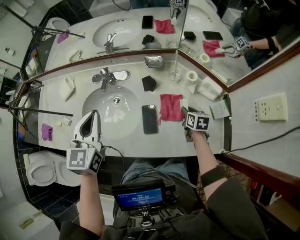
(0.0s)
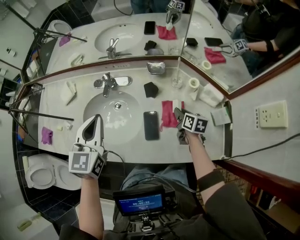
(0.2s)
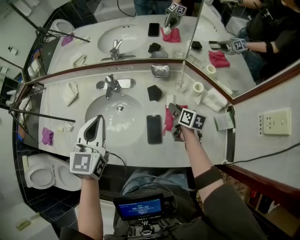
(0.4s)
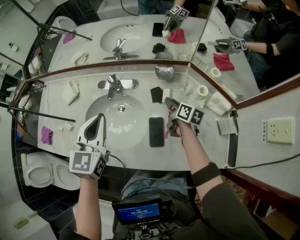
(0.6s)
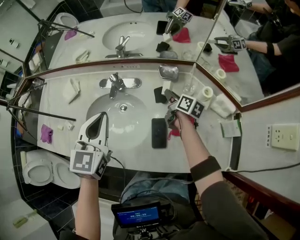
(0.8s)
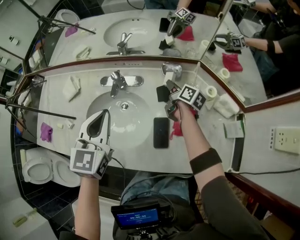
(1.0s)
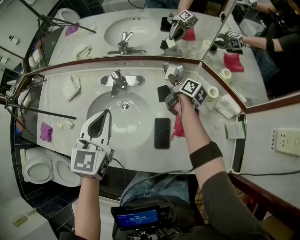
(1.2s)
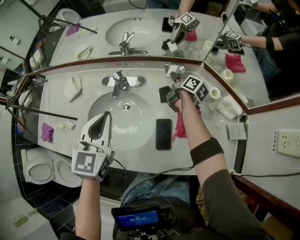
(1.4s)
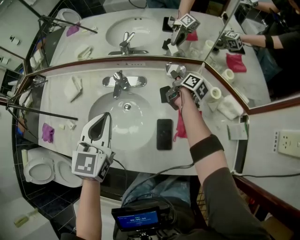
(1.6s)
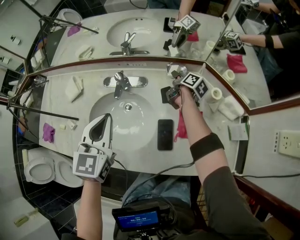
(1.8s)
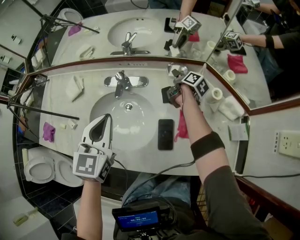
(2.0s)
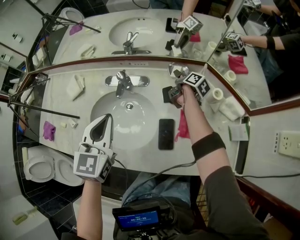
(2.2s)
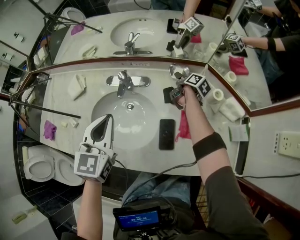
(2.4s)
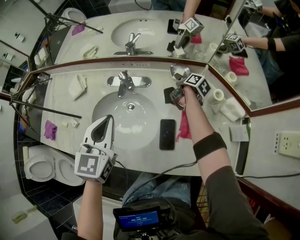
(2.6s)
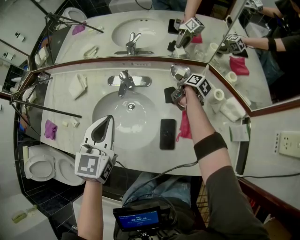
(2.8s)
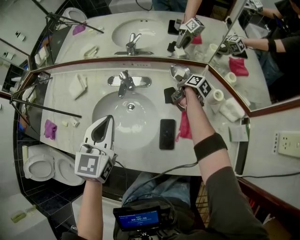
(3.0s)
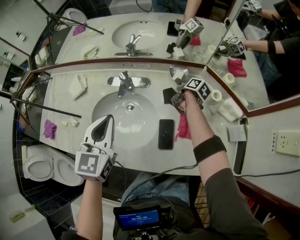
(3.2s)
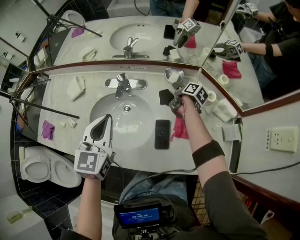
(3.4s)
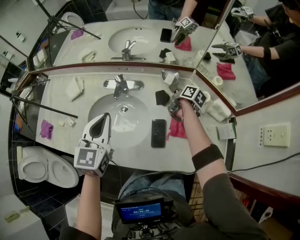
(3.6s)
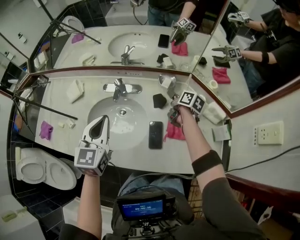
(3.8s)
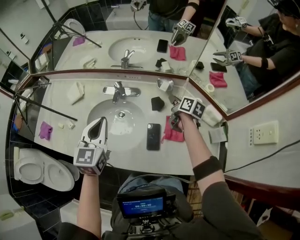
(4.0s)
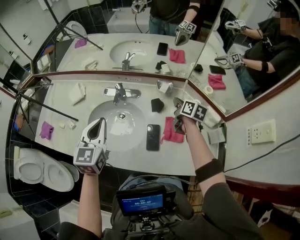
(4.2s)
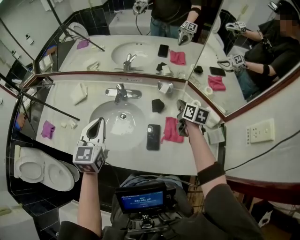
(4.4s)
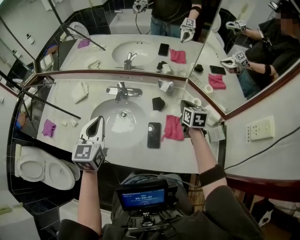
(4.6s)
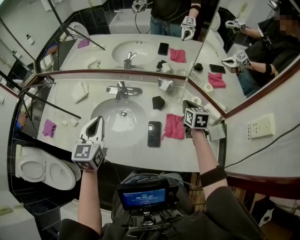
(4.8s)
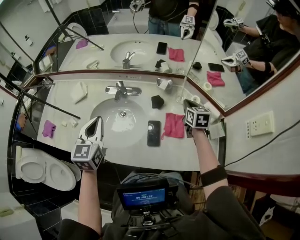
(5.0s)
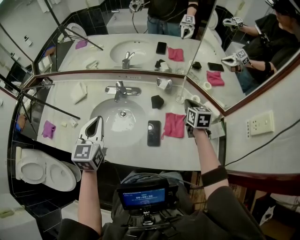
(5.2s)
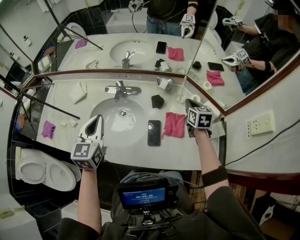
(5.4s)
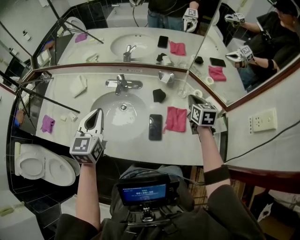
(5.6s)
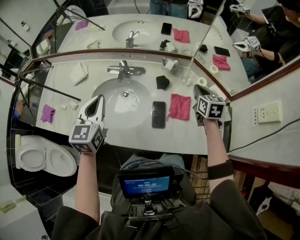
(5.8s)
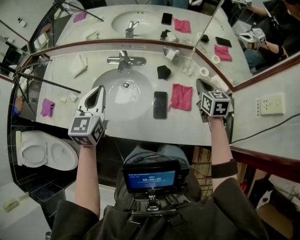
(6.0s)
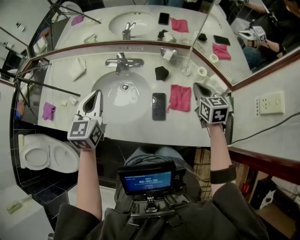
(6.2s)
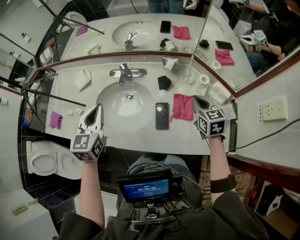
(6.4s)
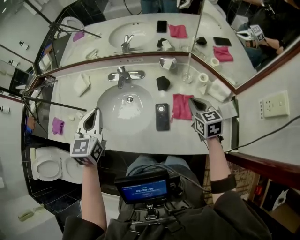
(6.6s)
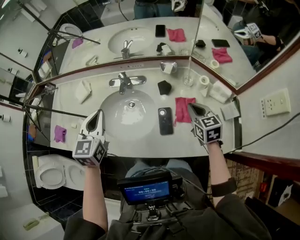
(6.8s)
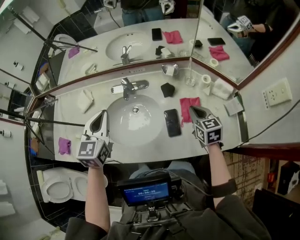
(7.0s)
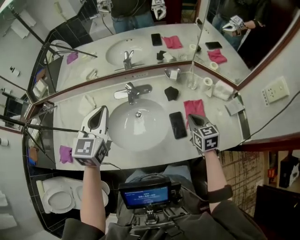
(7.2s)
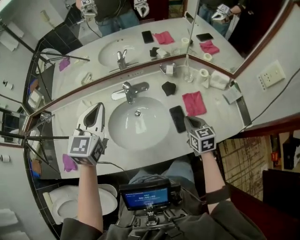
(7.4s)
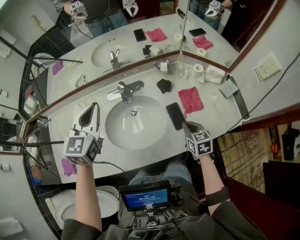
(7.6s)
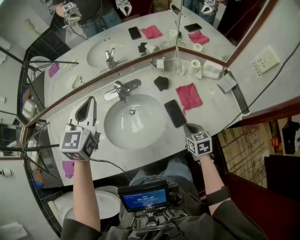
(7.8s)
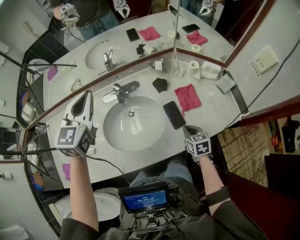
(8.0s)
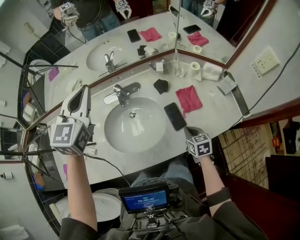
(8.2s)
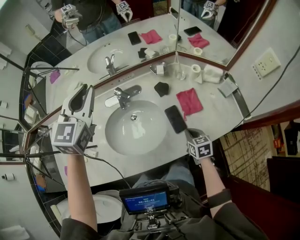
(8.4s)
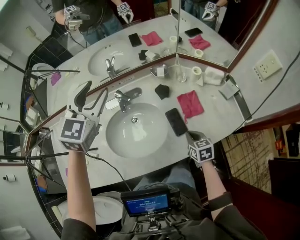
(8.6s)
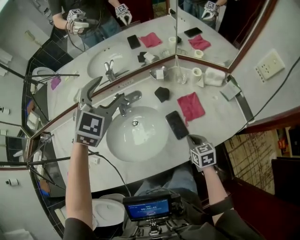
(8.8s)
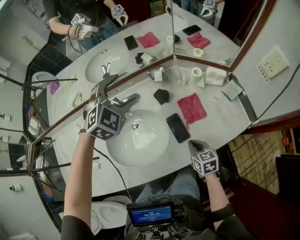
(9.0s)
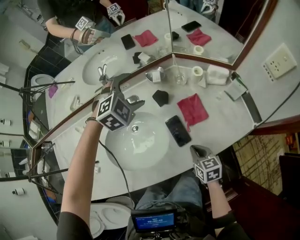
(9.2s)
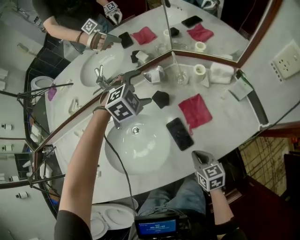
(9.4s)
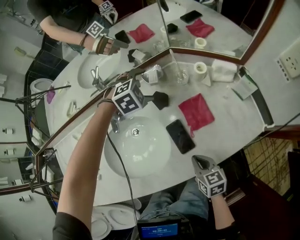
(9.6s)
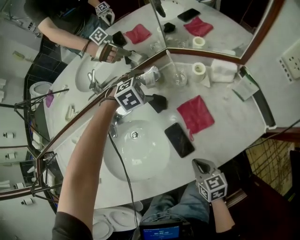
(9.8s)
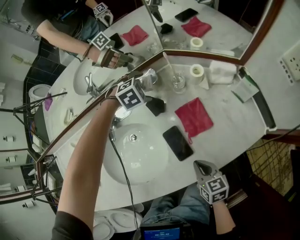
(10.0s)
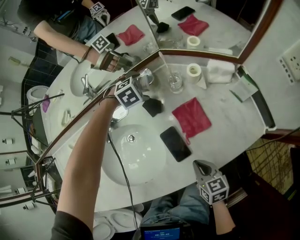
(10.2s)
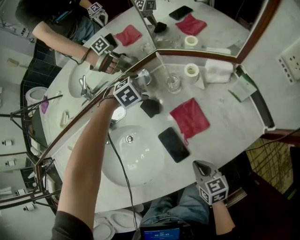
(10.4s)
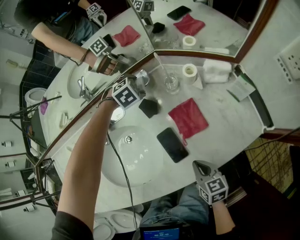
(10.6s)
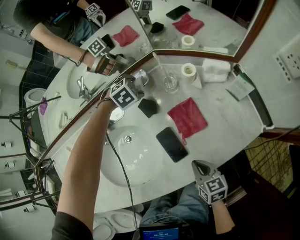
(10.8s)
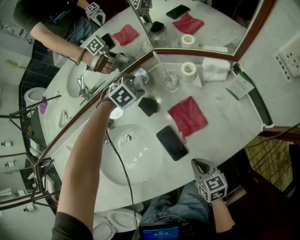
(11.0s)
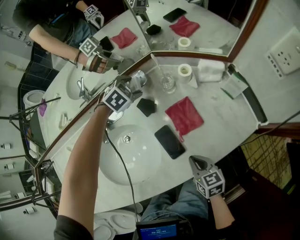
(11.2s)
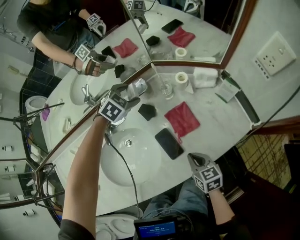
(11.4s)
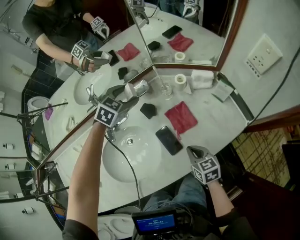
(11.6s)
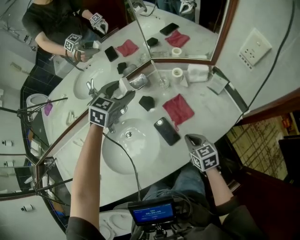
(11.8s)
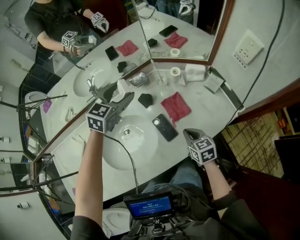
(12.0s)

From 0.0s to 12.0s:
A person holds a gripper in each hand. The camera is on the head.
From 0.0s to 1.6s: The left gripper moves forward, approximately 5 cm, while the right gripper is displaced forward and to the left by some 30 cm, and turns by some 40 degrees.
From 1.6s to 3.0s: The grippers move only a little.
From 3.0s to 4.4s: The left gripper heads backward, covering some 5 cm; the right gripper heads upward and backward, covering approximately 20 cm, changes its angle by roughly 40 degrees, and closes its fingers.
From 4.4s to 6.0s: The right gripper travels backward by about 10 cm, and rotates about 30 degrees.
From 6.0s to 7.6s: The left gripper heads forward, to the left and upward, covering roughly 15 cm, and swivels some 30 degrees. Meanwhile the right gripper moves to the left, backward and downward, approximately 25 cm.
From 7.6s to 9.0s: The left gripper travels to the right and forward by roughly 20 cm, rolls clockwise, seen from behind, by roughly 50 degrees, and opens. Meanwhile the right gripper moves downward, roughly 5 cm.
From 9.0s to 10.4s: The right gripper ends up approximately 5 cm from where it was. Meanwhile the left gripper travels downward by roughly 30 cm, and tilts its fingers about 40 degrees downward.
From 10.4s to 12.0s: The right gripper heads upward, covering some 10 cm, while the left gripper moves upward, approximately 30 cm, and angles its fingers upward, by roughly 40 degrees.

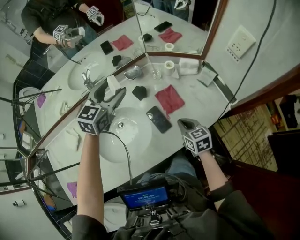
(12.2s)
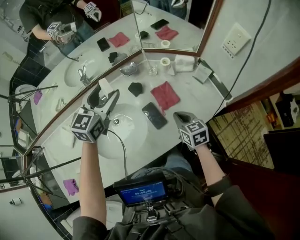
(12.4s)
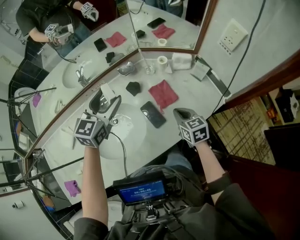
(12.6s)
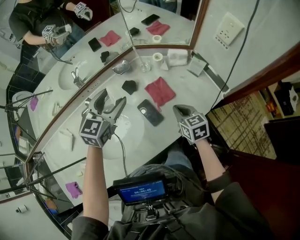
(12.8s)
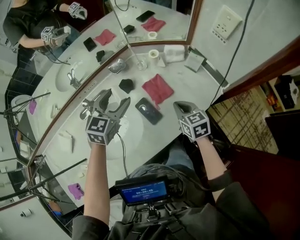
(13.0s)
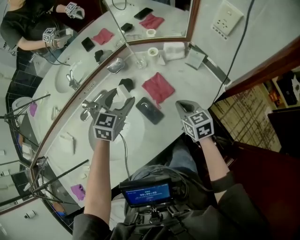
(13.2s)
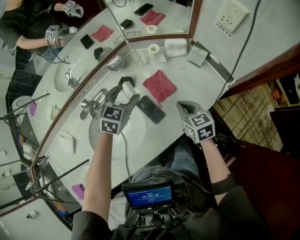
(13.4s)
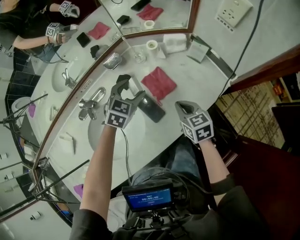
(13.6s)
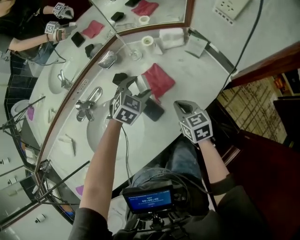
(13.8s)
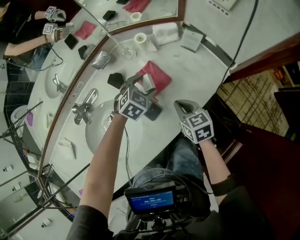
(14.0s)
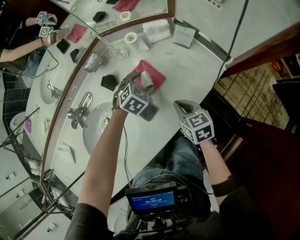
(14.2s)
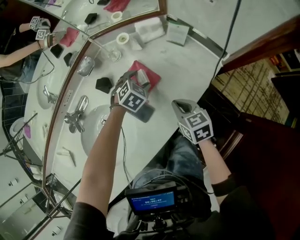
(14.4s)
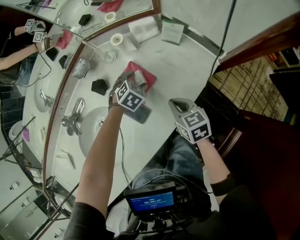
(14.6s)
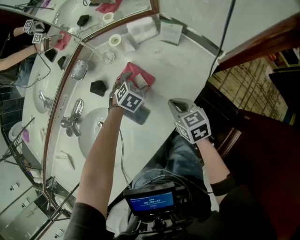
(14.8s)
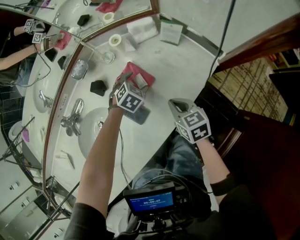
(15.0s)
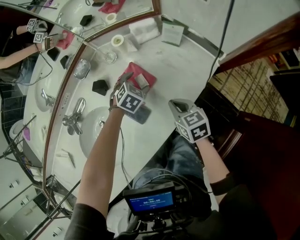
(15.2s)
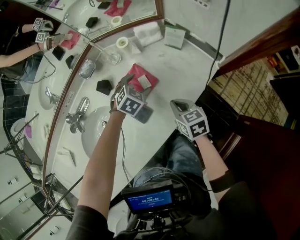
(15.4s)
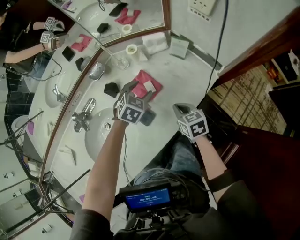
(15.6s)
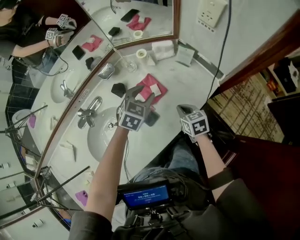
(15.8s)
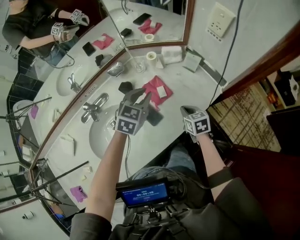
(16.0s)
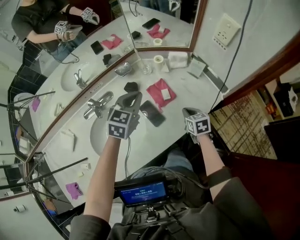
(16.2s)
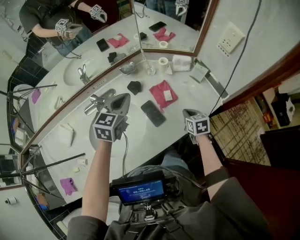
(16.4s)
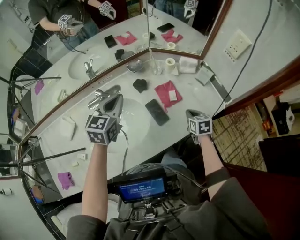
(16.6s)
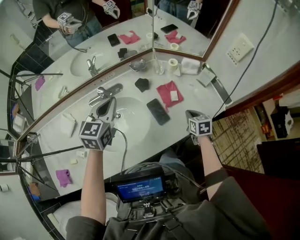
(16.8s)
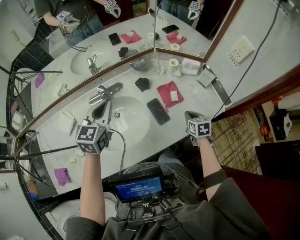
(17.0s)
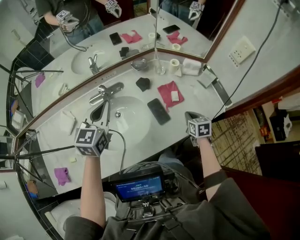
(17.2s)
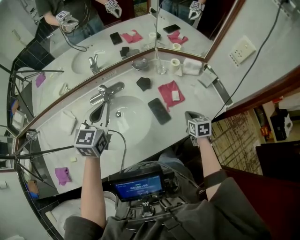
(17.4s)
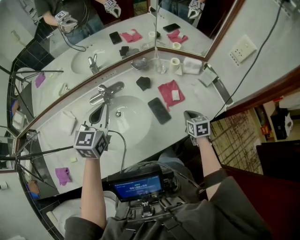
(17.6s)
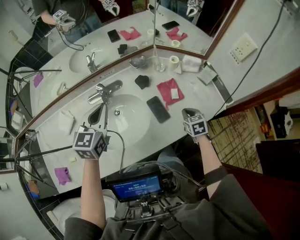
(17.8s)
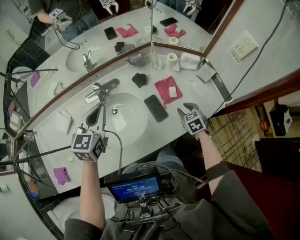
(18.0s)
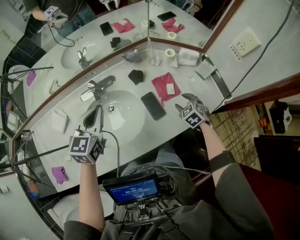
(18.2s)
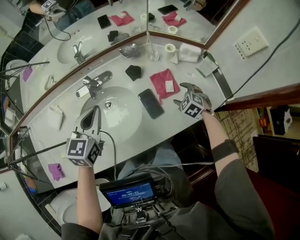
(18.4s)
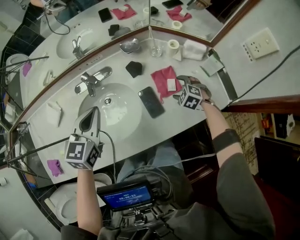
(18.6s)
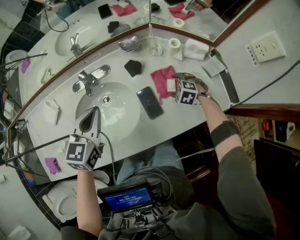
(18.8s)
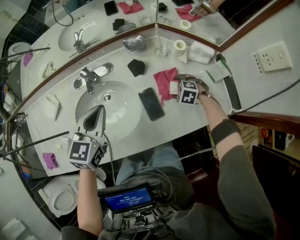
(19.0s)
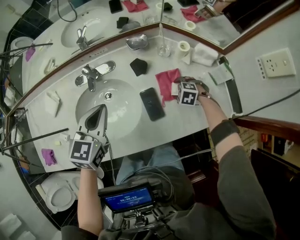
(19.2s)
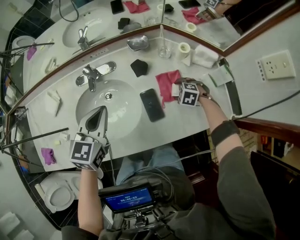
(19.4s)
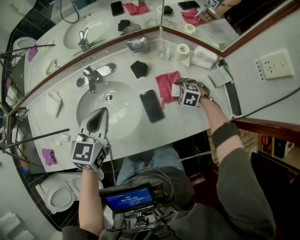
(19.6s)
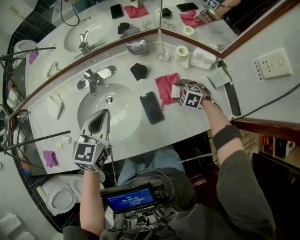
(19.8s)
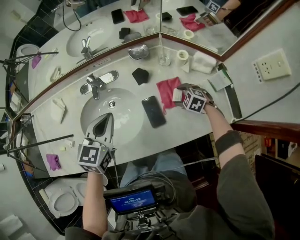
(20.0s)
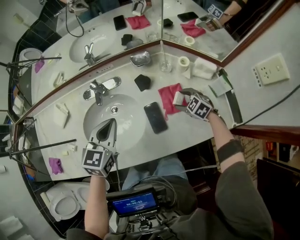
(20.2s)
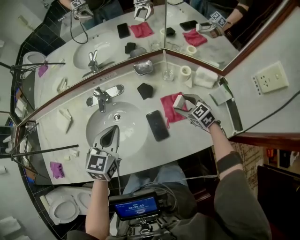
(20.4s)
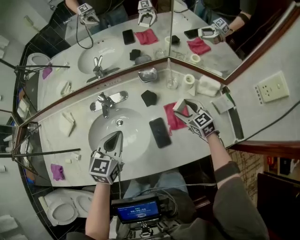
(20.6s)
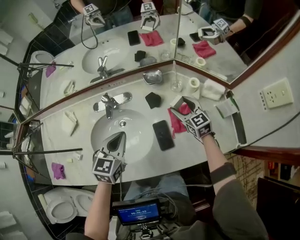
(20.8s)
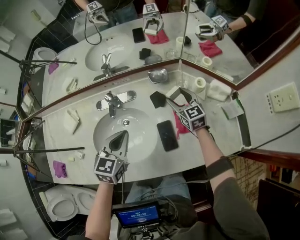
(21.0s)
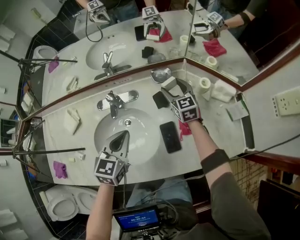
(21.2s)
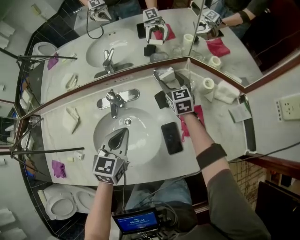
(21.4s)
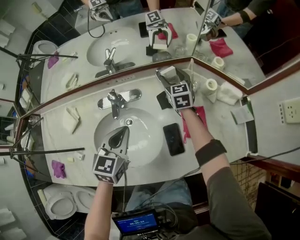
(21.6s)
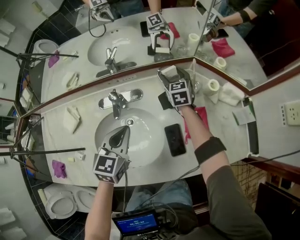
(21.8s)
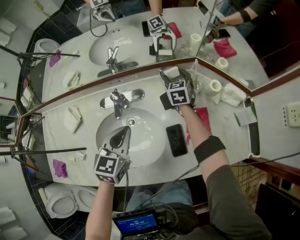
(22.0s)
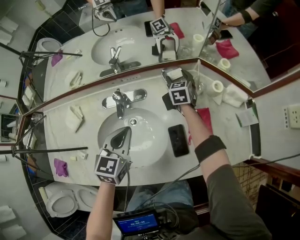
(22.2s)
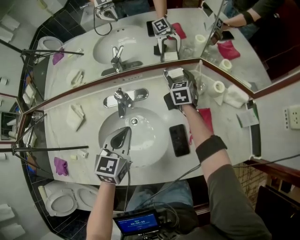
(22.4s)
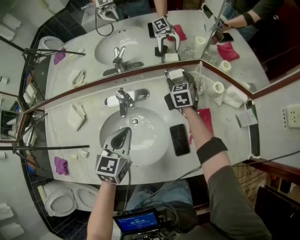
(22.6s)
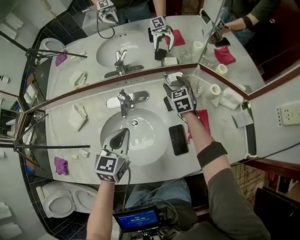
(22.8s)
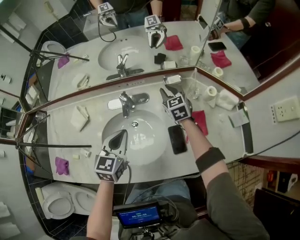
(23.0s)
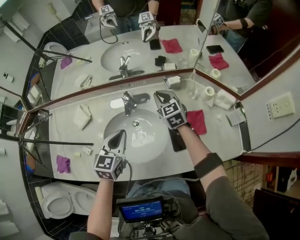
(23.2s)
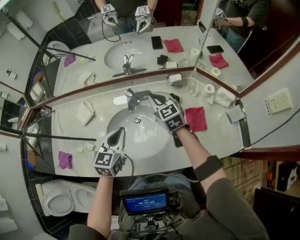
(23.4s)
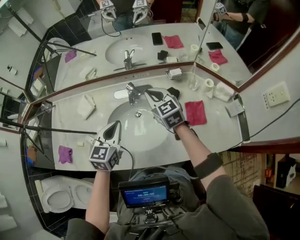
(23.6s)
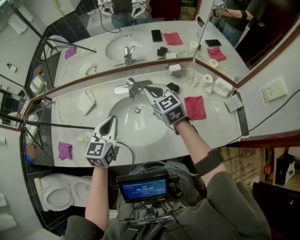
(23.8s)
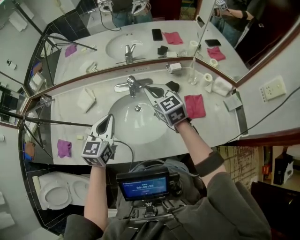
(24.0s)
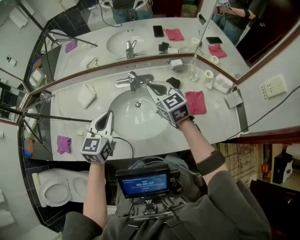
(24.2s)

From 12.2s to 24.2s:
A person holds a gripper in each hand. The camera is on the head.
From 12.2s to 13.8s: The right gripper travels downward by roughly 5 cm. The left gripper is displaced downward and to the right by some 30 cm, and turns by some 40 degrees.
From 13.8s to 15.2s: The left gripper heads downward and to the right, covering some 15 cm. Meanwhile the right gripper shifts roughly 5 cm to the right.
From 15.2s to 16.6s: The left gripper is displaced upward, to the left and backward by approximately 40 cm, tilts its fingers roughly 40 degrees upward, and closes.
From 16.6s to 18.2s: The right gripper ends up roughly 5 cm from where it was, rotates around the line of its fingers by some 40 degrees, counterclockwise from behind, and opens. The left gripper goes approximately 5 cm to the left.
From 18.2s to 19.8s: The right gripper is displaced downward by some 10 cm, and swivels some 40 degrees; the left gripper ends up roughly 10 cm from where it was.
From 19.8s to 21.2s: The left gripper shifts by about 5 cm. The right gripper shifts some 25 cm forward and upward, and tips its fingers upward by some 50 degrees.
From 21.2s to 22.6s: The right gripper goes roughly 5 cm forward.
From 22.6s to 24.2s: The left gripper is displaced to the left, upward and backward by some 20 cm, while the right gripper is displaced backward, upward and to the left by approximately 35 cm, rotates approximately 30 degrees, and closes its fingers.
